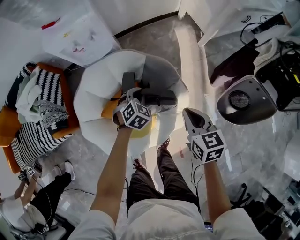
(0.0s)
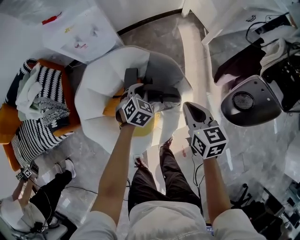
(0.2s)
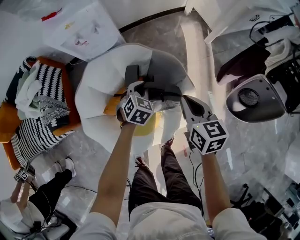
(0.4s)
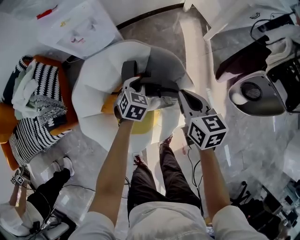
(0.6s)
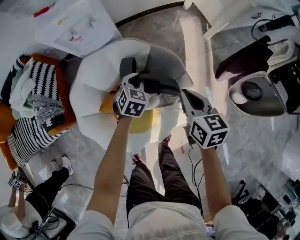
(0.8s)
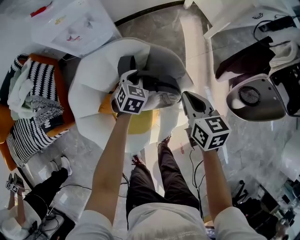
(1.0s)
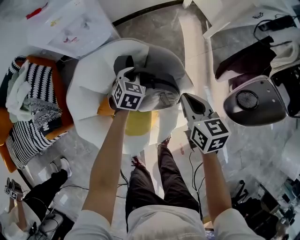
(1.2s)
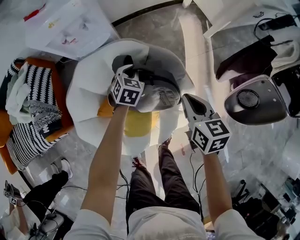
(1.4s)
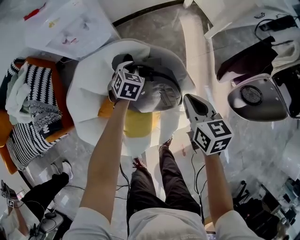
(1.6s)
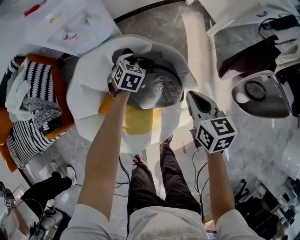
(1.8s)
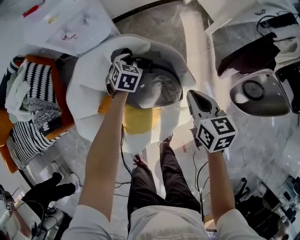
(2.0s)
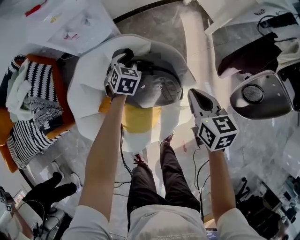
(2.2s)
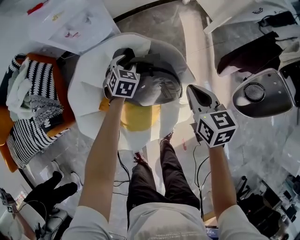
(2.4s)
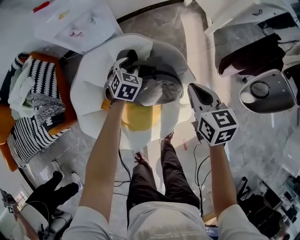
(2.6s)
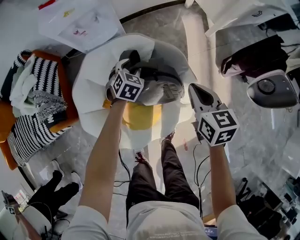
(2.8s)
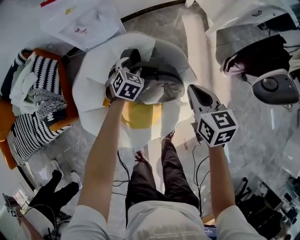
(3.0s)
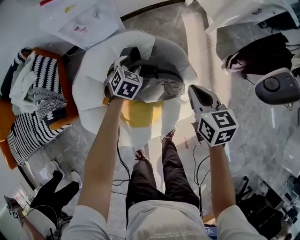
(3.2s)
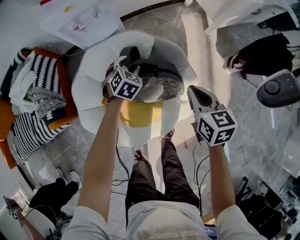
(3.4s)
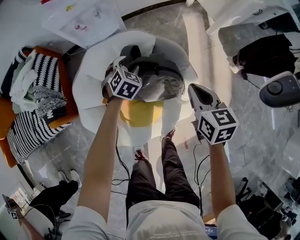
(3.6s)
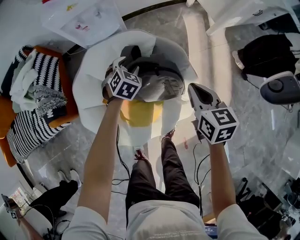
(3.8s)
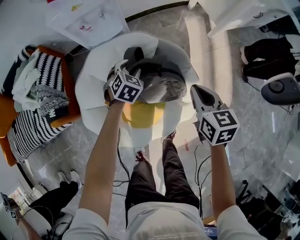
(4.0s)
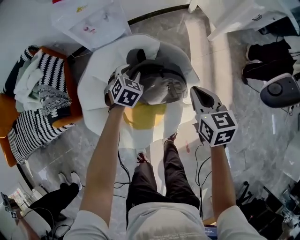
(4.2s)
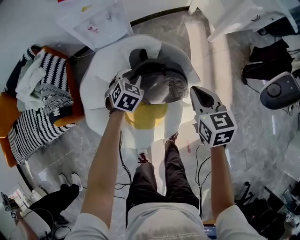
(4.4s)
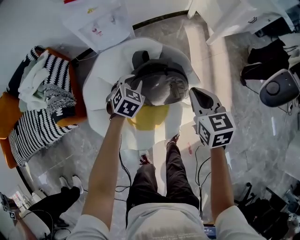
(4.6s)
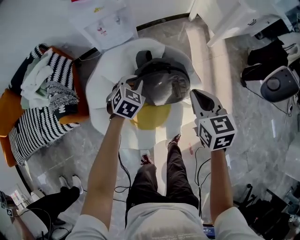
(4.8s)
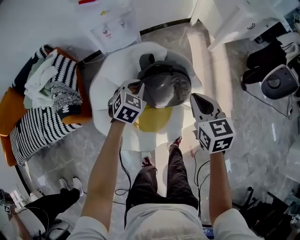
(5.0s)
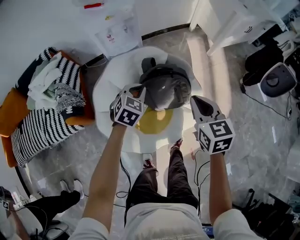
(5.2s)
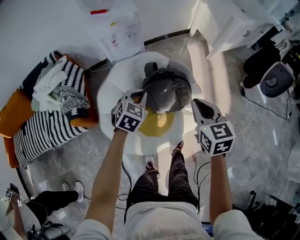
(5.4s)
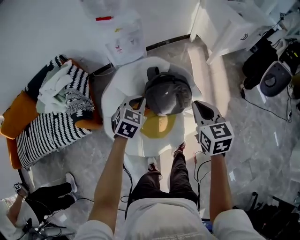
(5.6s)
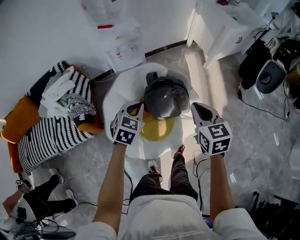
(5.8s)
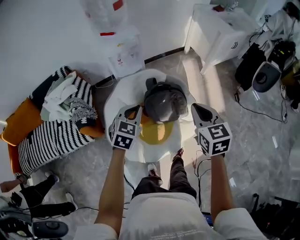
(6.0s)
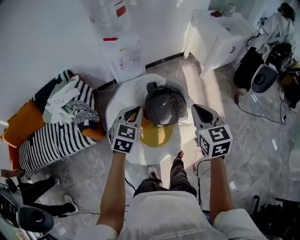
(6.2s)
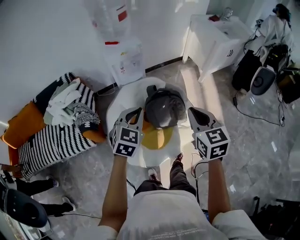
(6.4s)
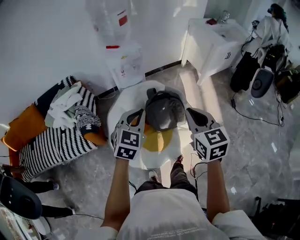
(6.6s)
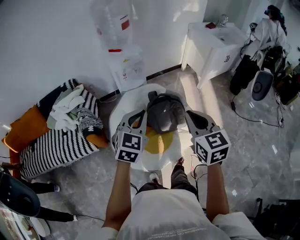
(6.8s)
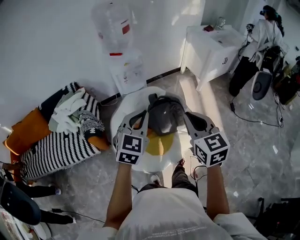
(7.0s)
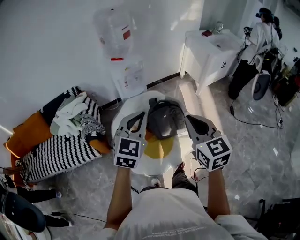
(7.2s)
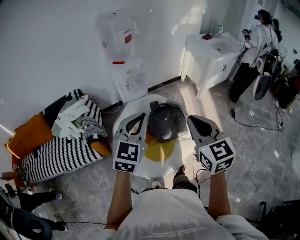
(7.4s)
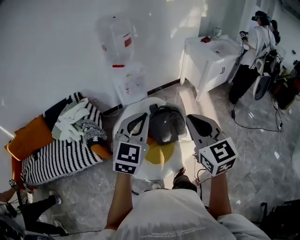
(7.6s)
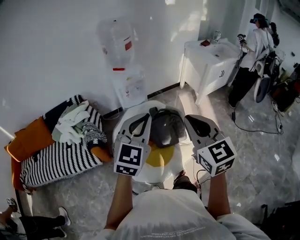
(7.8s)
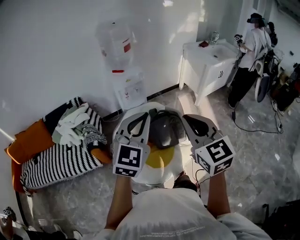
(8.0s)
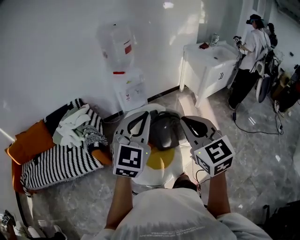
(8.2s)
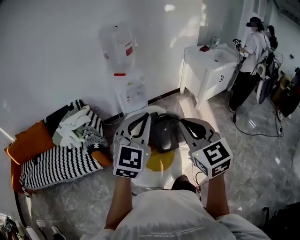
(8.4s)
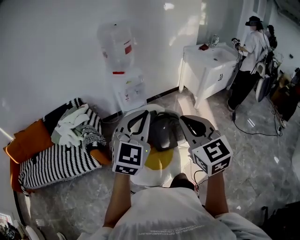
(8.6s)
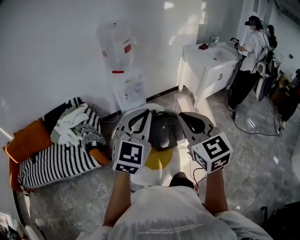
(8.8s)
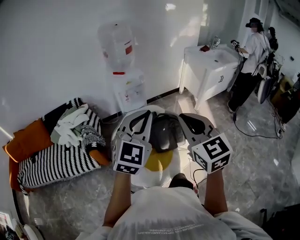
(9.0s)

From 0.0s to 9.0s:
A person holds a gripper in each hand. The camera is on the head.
From 0.0s to 1.6s: The left gripper travels forward and downward by approximately 15 cm. Meanwhile the right gripper travels forward and downward by some 10 cm.
From 1.6s to 3.0s: The right gripper moves roughly 5 cm; the left gripper goes approximately 5 cm backward, and opens.
From 3.0s to 4.4s: The left gripper heads backward, covering about 5 cm.
From 4.4s to 6.0s: The grippers both shift upward and backward by some 30 cm. The left gripper closes up.
From 6.0s to 7.6s: The two grippers go approximately 25 cm upward and backward. The right gripper swivels roughly 20 degrees, while the left gripper swivels approximately 30 degrees.
From 7.6s to 9.0s: The grippers make only small movements.

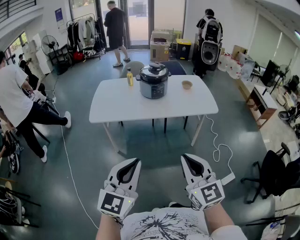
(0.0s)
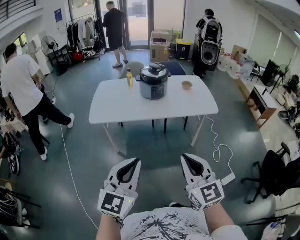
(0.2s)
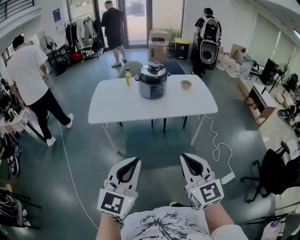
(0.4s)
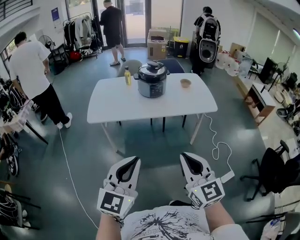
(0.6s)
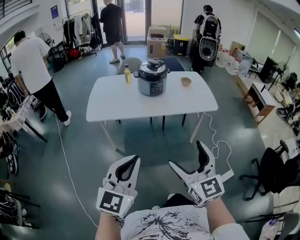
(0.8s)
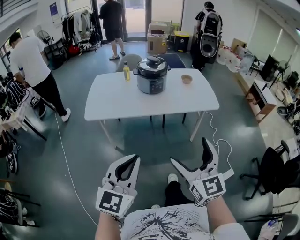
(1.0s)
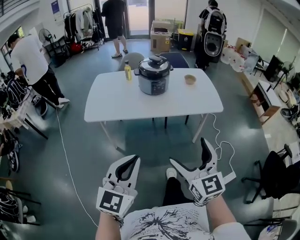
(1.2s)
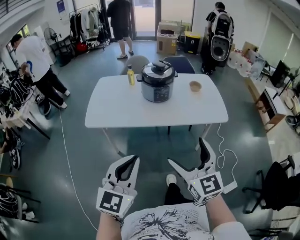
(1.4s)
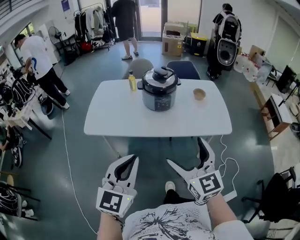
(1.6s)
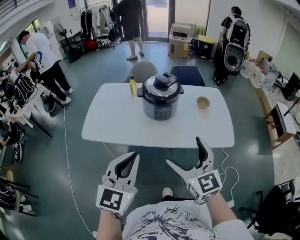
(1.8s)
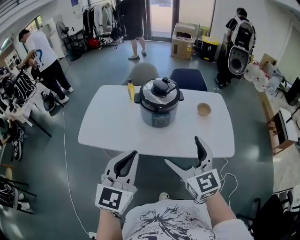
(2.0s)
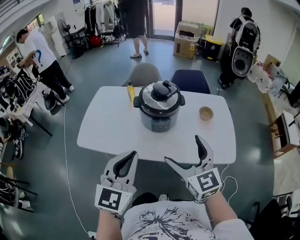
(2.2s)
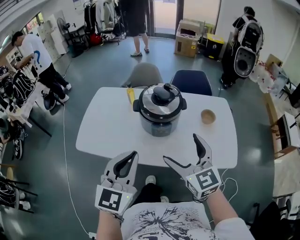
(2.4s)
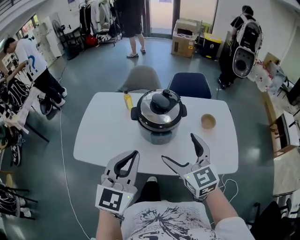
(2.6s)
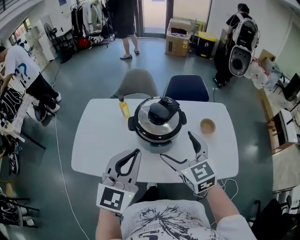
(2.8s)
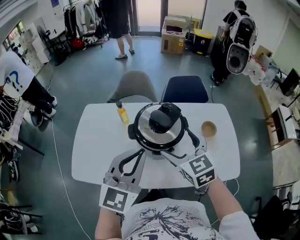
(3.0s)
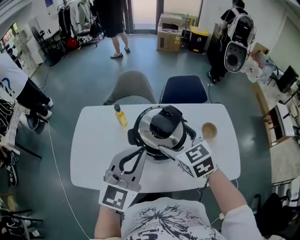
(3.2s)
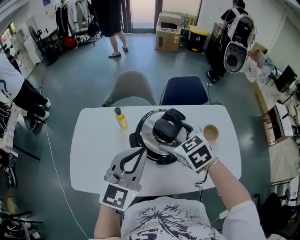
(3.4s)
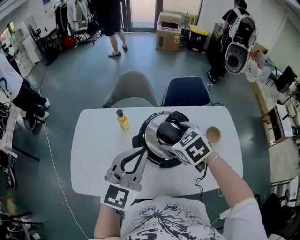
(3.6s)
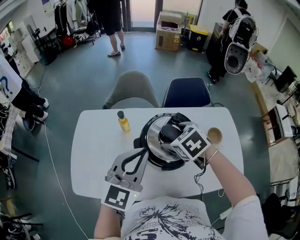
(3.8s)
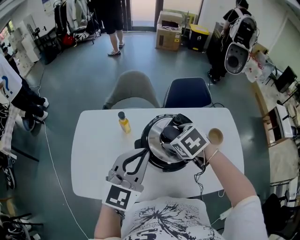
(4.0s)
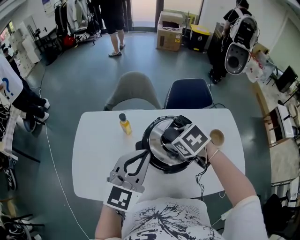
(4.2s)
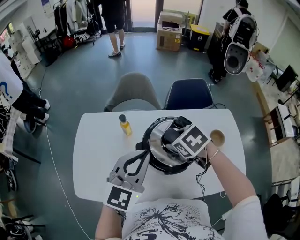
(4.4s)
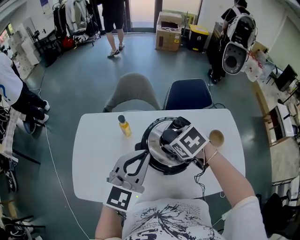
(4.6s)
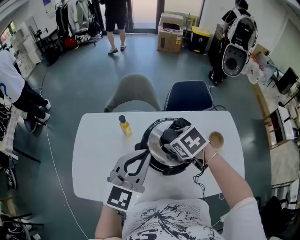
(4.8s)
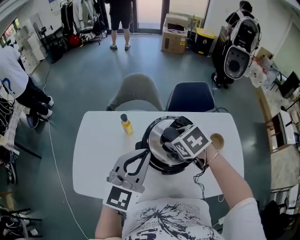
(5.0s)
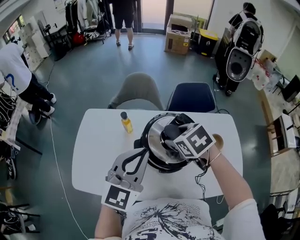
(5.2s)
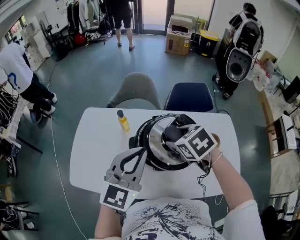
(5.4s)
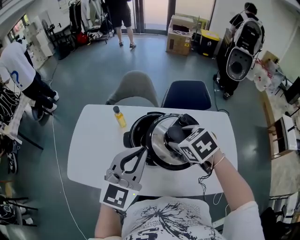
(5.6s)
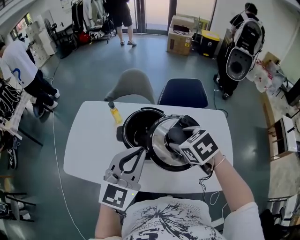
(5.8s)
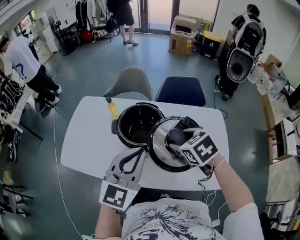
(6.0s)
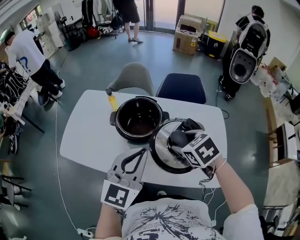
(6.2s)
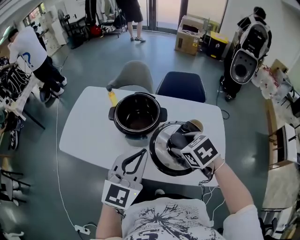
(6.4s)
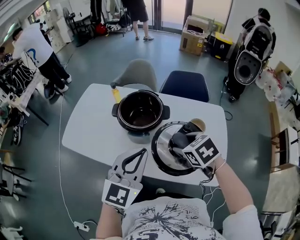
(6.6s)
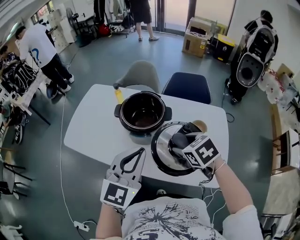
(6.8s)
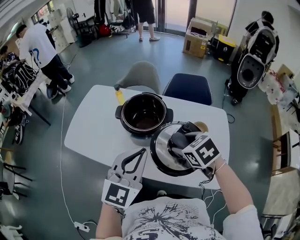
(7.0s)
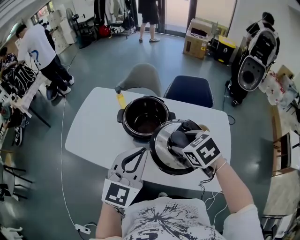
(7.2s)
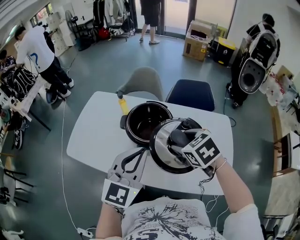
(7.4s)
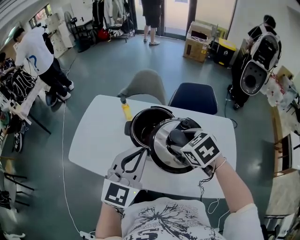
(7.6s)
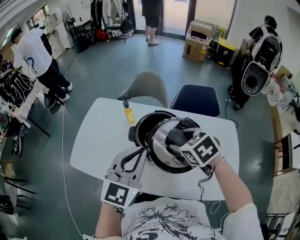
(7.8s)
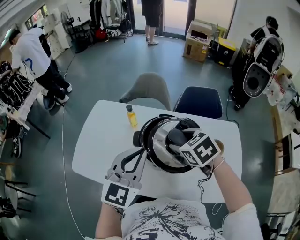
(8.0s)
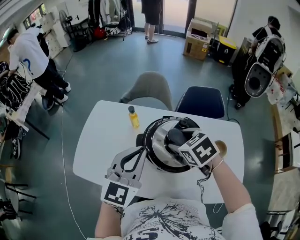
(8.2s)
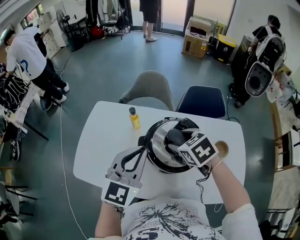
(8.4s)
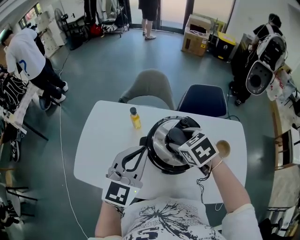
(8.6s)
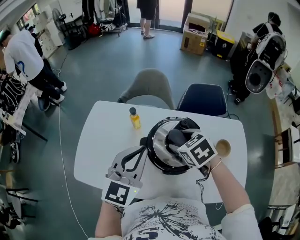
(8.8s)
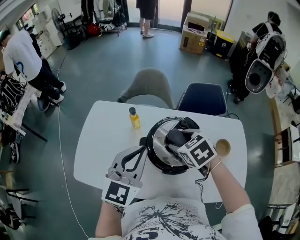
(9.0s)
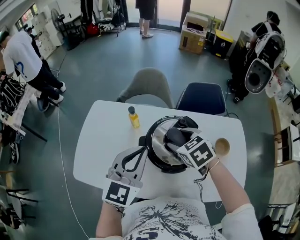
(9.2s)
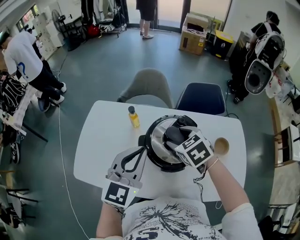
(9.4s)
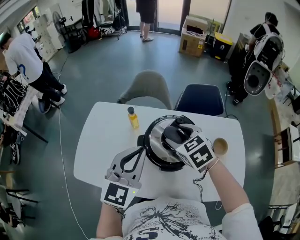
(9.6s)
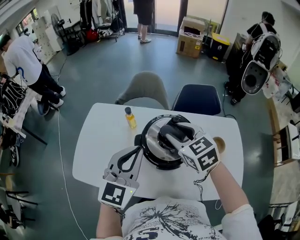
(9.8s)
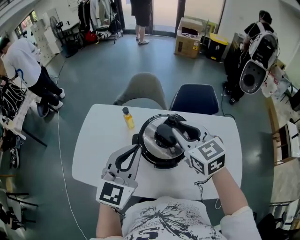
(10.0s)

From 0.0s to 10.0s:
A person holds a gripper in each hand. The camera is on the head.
From 0.0s to 1.4s: The grippers both shift forward by roughly 20 cm. The right gripper opens its fingers.
From 1.4s to 2.8s: The pair of grippers is taken forward, about 50 cm.
From 2.8s to 4.2s: The right gripper goes some 25 cm forward and downward, tilts its fingers approximately 40 degrees downward, and closes its fingers; the left gripper goes roughly 20 cm forward.
From 4.2s to 5.8s: The grippers both shift to the right and backward by roughly 15 cm.
From 5.8s to 7.2s: The two grippers go approximately 10 cm backward.
From 7.2s to 8.6s: Both grippers move forward and to the left, about 25 cm.
From 8.6s to 10.0s: The right gripper travels upward by some 10 cm, and points its fingers some 30 degrees further upward; the left gripper moves approximately 5 cm.

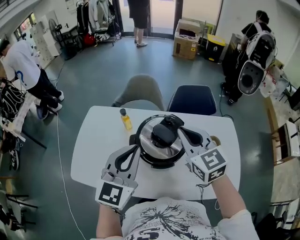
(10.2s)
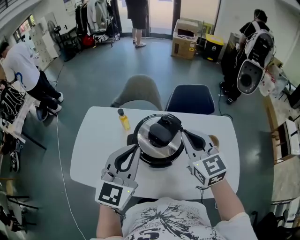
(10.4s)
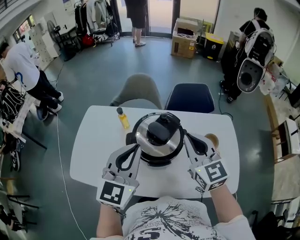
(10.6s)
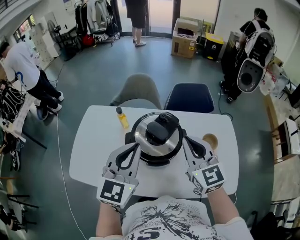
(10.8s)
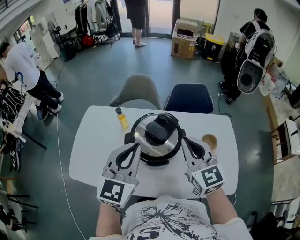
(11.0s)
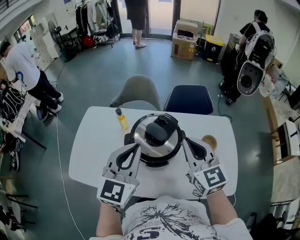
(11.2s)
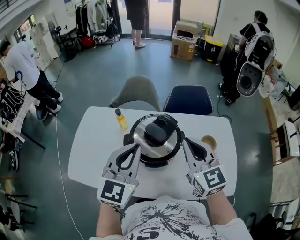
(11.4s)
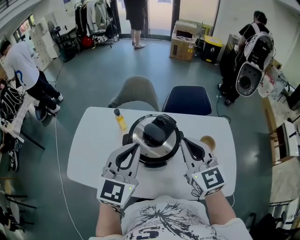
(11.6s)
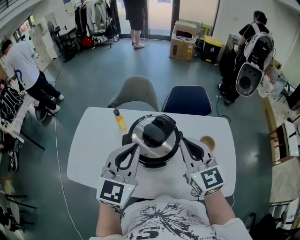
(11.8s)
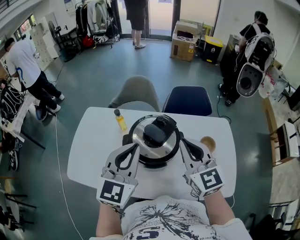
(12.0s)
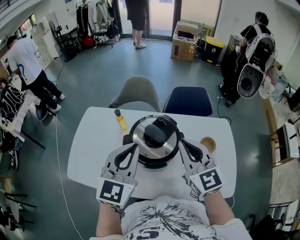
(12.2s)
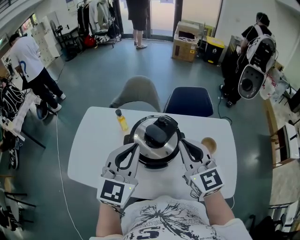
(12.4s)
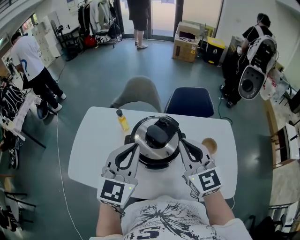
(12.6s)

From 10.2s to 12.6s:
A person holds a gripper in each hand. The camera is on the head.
From 10.2s to 11.4s: The right gripper goes some 5 cm to the right.
From 11.4s to 12.6s: The grippers stay close to where they were, moving slightly.

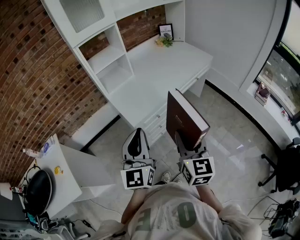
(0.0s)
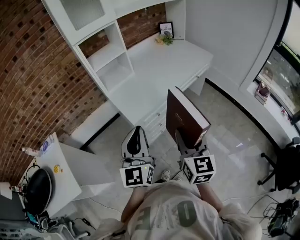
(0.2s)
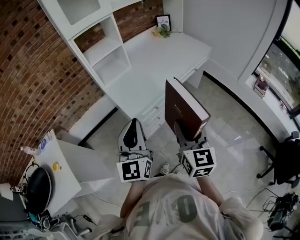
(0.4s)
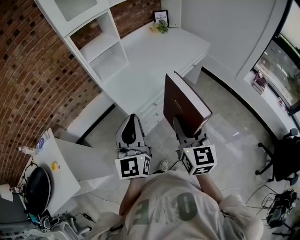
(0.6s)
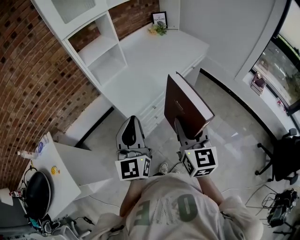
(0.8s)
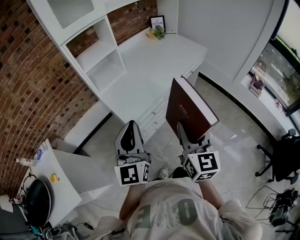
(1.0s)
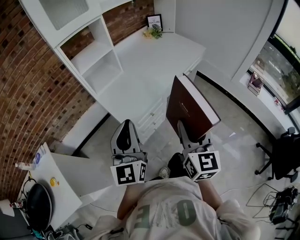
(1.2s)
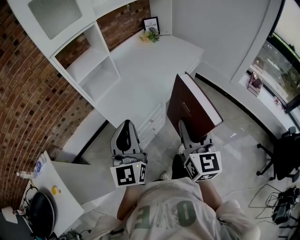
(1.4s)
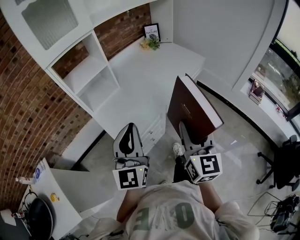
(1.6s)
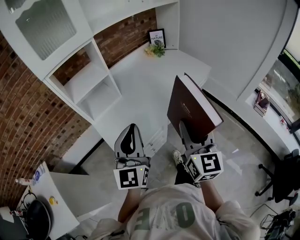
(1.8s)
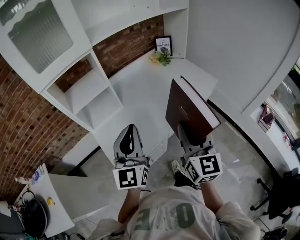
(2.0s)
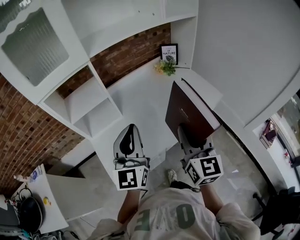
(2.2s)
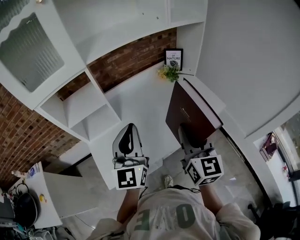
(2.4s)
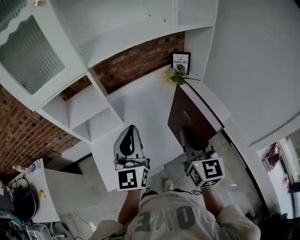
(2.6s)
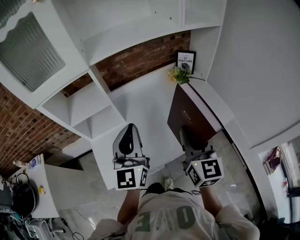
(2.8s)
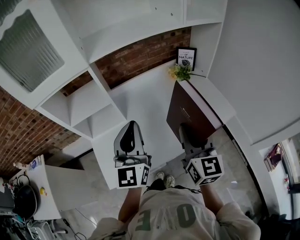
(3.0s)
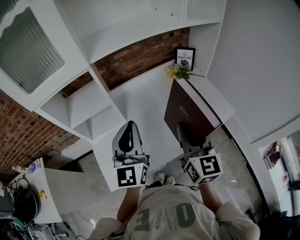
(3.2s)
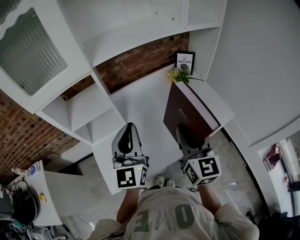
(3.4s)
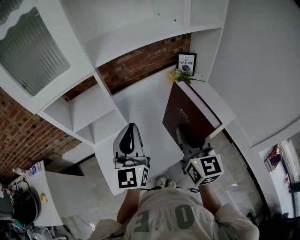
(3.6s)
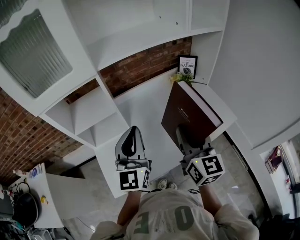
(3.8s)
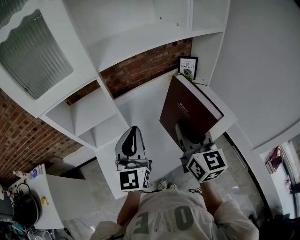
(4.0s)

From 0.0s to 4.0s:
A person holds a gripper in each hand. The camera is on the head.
From 0.0s to 1.4s: Both grippers travel together forward, roughly 10 cm.
From 1.4s to 2.6s: Both grippers move forward, about 35 cm. The right gripper turns by approximately 20 degrees.
From 2.6s to 4.0s: The right gripper moves to the left and forward, some 10 cm. Meanwhile the left gripper moves approximately 5 cm.
